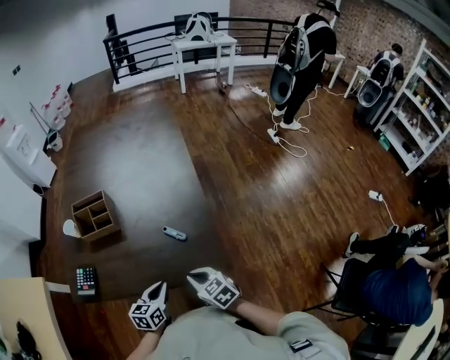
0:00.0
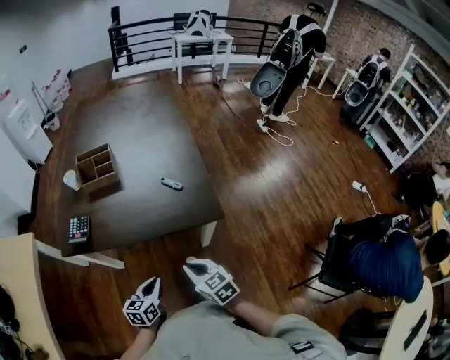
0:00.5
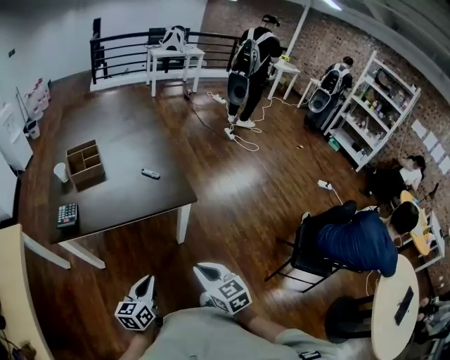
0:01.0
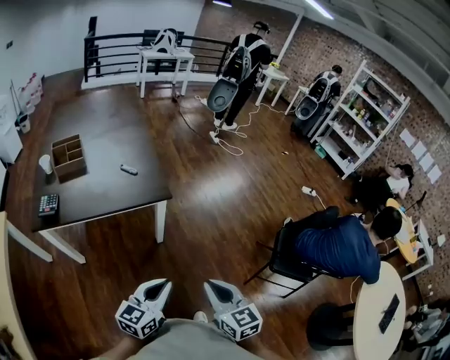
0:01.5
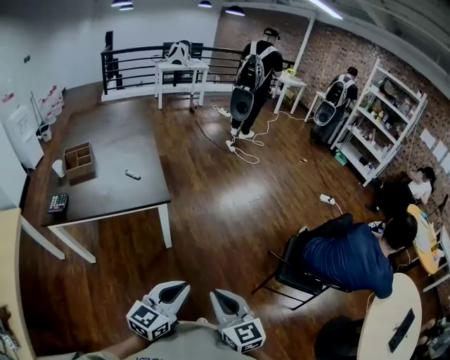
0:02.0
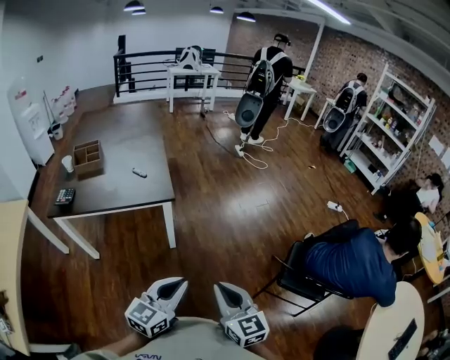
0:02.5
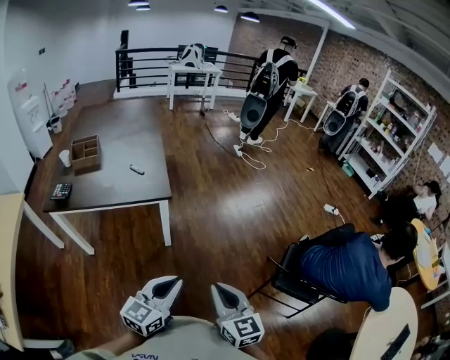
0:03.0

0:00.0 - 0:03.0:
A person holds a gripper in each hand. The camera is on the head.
0:00.0 - 0:01.5: The left gripper ends up about 40 cm from where it was, and turns by roughly 40 degrees. The right gripper changes place by about 40 cm, and swivels roughly 40 degrees.
0:01.5 - 0:03.0: The grippers both shift to the right by about 10 cm.

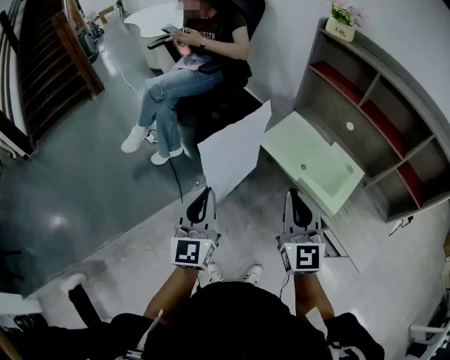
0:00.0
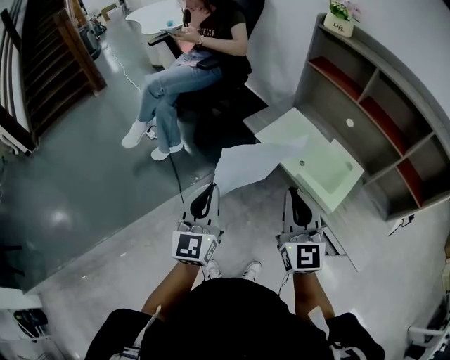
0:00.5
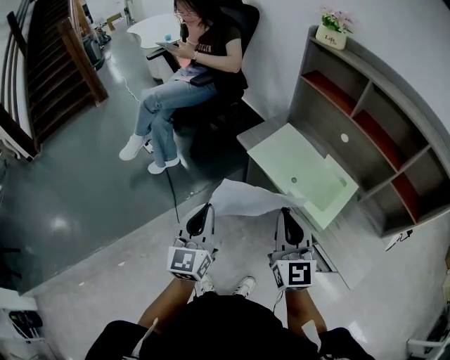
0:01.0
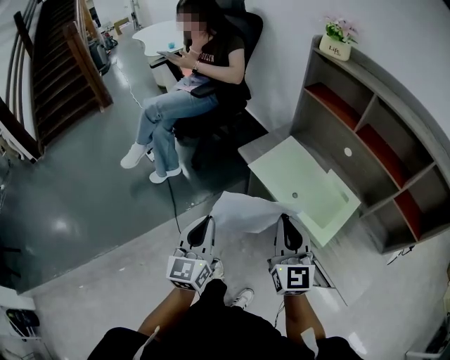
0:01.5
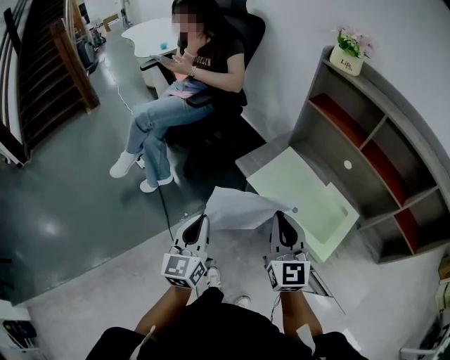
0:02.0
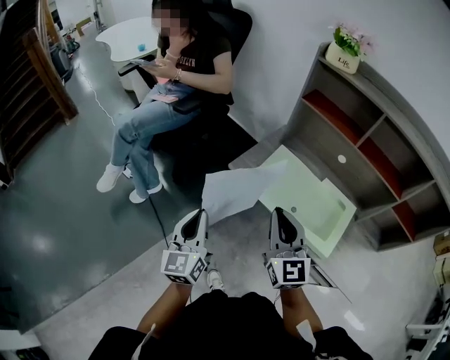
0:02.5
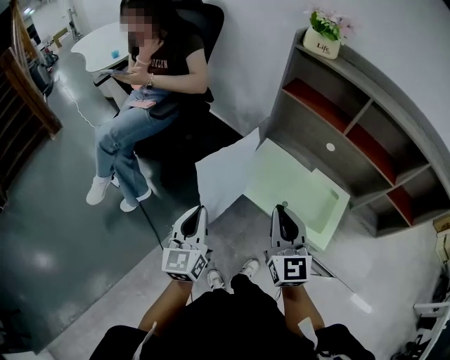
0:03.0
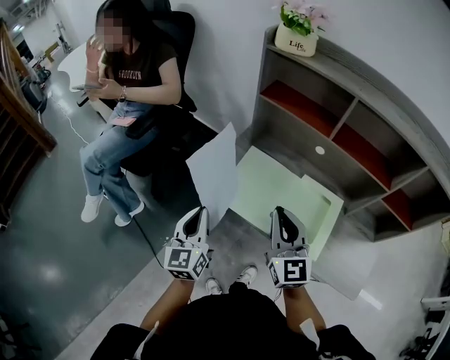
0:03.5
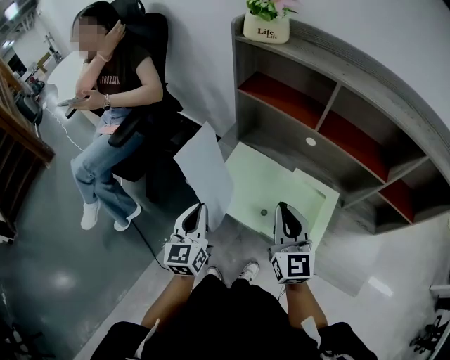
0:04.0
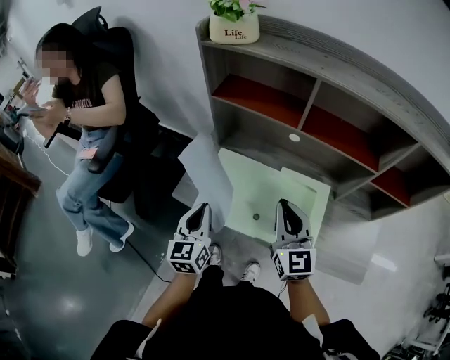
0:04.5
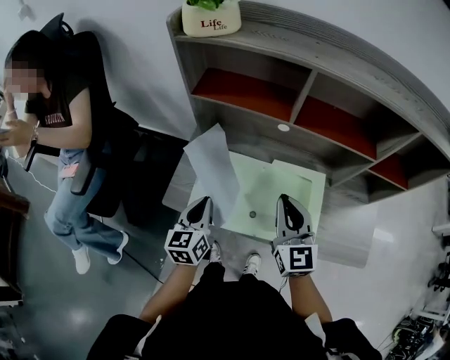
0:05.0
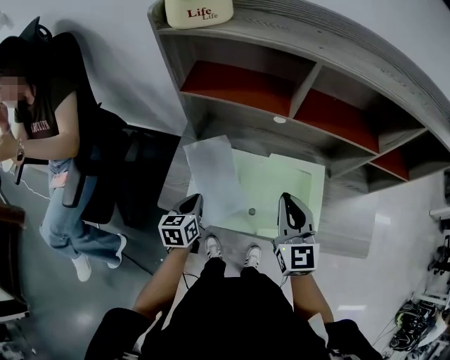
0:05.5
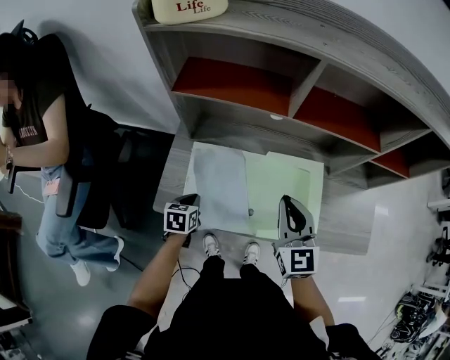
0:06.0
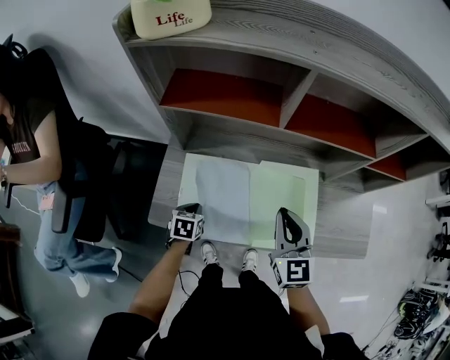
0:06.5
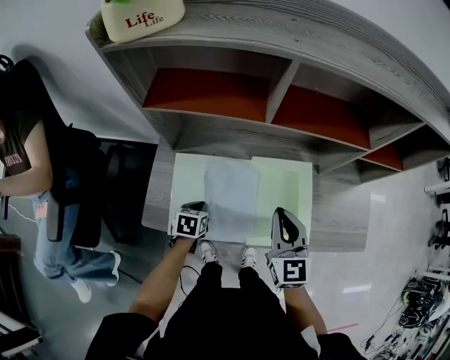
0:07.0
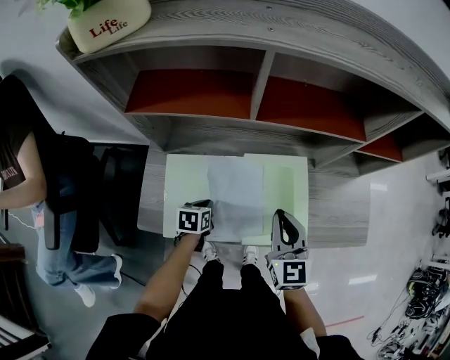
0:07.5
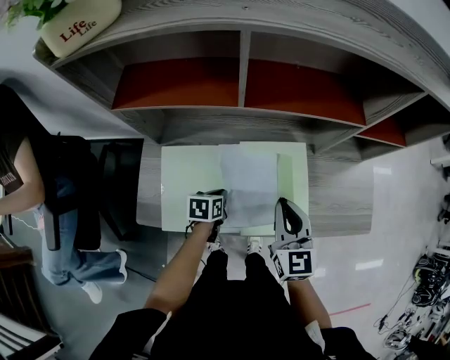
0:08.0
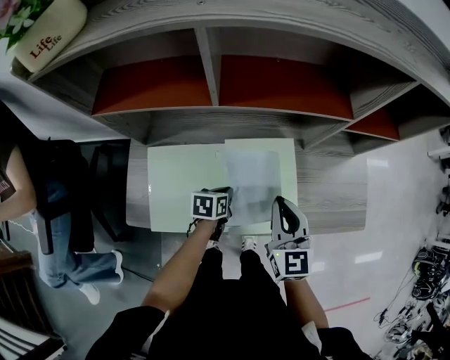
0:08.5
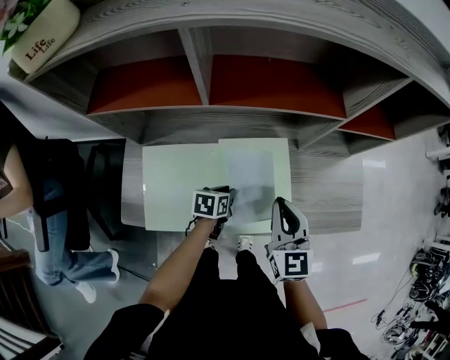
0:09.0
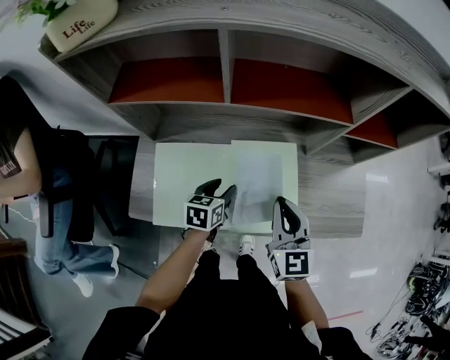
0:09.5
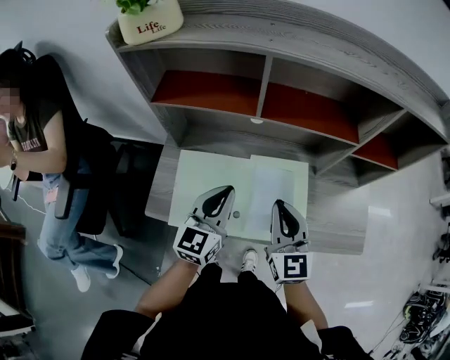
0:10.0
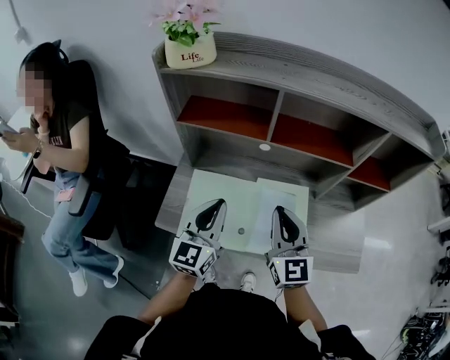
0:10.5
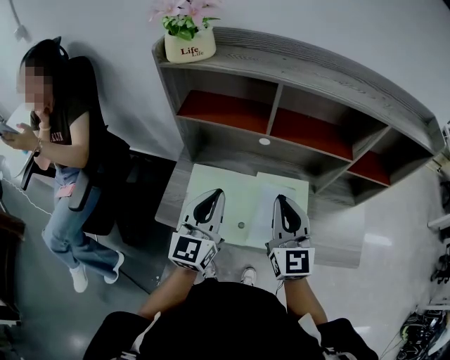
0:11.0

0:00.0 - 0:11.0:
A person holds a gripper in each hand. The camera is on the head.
0:00.0 - 0:02.0: The right gripper moves forward, some 15 cm; the left gripper goes about 15 cm forward and downward.
0:02.0 - 0:03.5: Both grippers move forward and to the right, about 15 cm.
0:03.5 - 0:05.5: The left gripper moves some 25 cm, and tilts its fingers about 30 degrees downward. The right gripper shifts by approximately 15 cm, and turns by about 30 degrees.
0:05.5 - 0:07.5: The left gripper goes roughly 15 cm downward, to the right and forward, and turns by roughly 30 degrees, while the right gripper moves downward and to the right, some 10 cm.
0:07.5 - 0:09.0: The right gripper heads to the right, covering some 5 cm. The left gripper is displaced to the right by roughly 15 cm.
0:09.0 - 0:11.0: The right gripper travels upward by some 15 cm, and turns by about 20 degrees; the left gripper heads upward, covering some 35 cm, angles its fingers upward, by roughly 50 degrees, and opens, then closes once more.

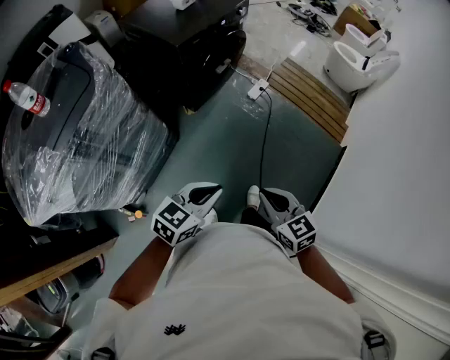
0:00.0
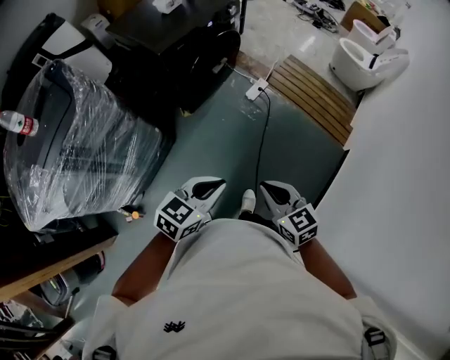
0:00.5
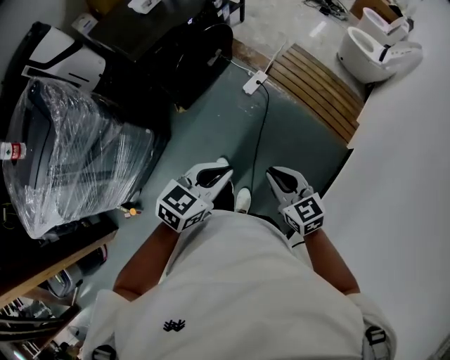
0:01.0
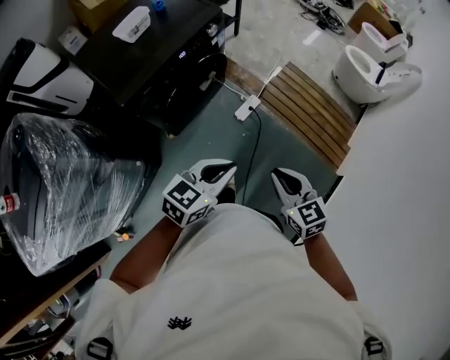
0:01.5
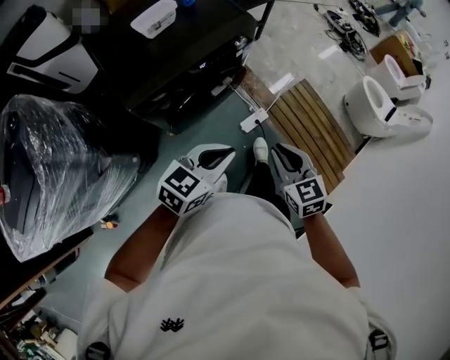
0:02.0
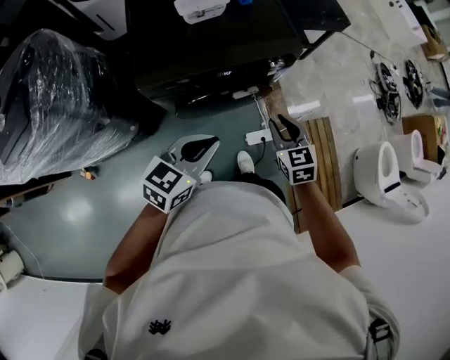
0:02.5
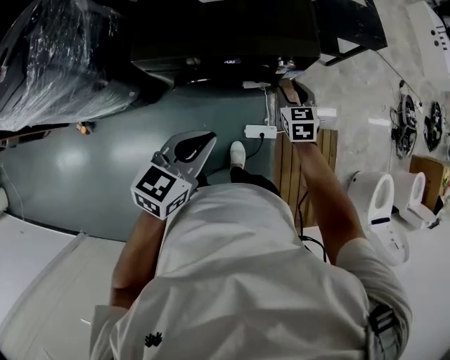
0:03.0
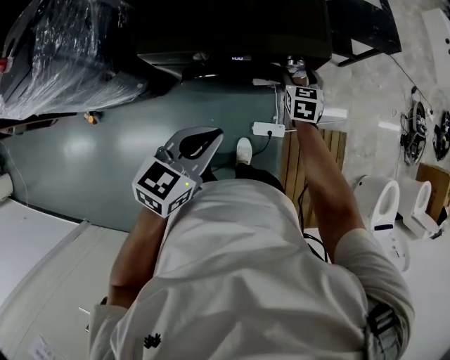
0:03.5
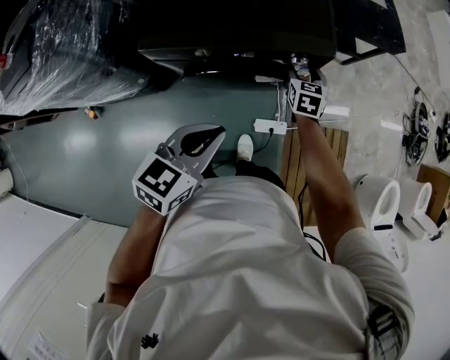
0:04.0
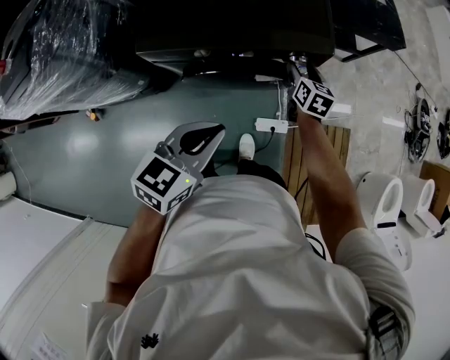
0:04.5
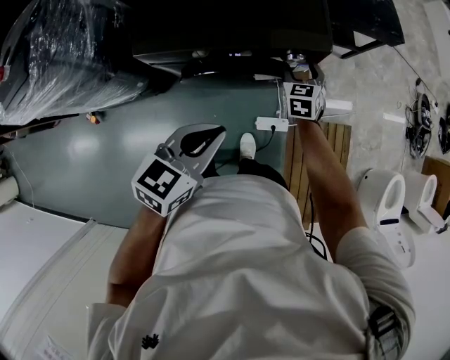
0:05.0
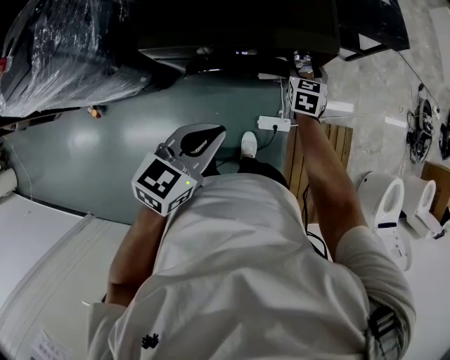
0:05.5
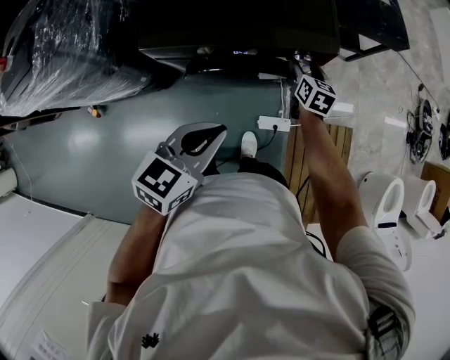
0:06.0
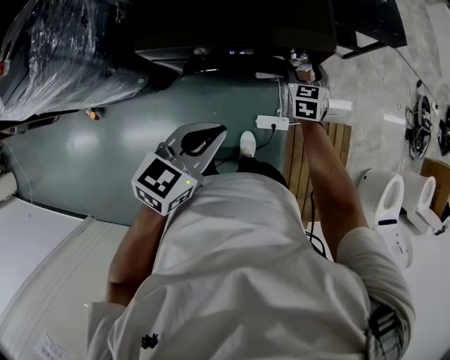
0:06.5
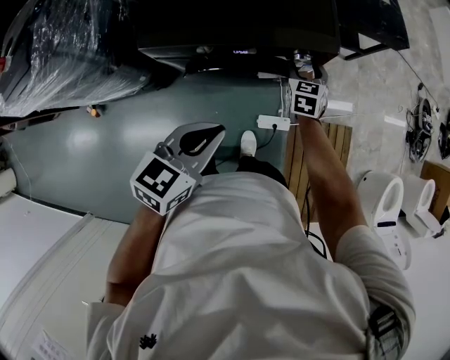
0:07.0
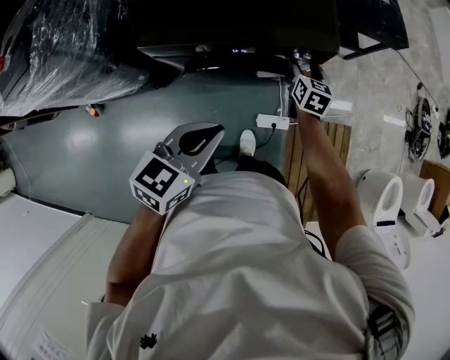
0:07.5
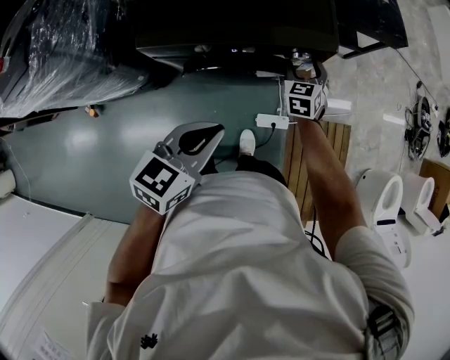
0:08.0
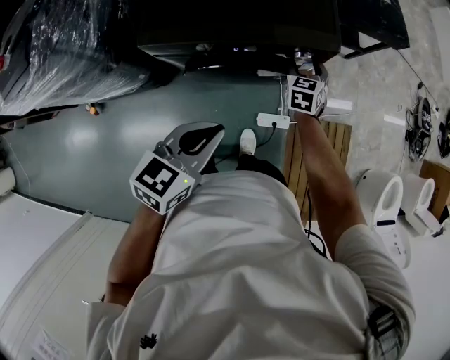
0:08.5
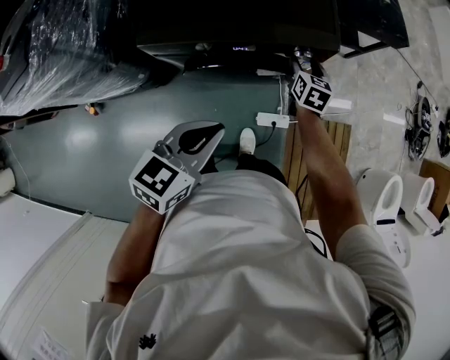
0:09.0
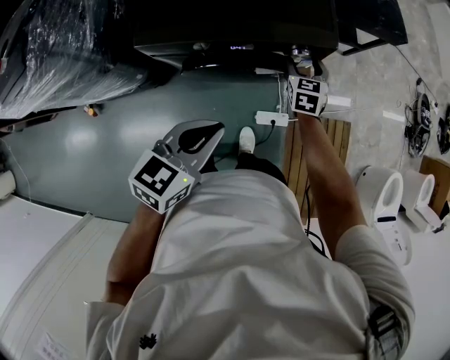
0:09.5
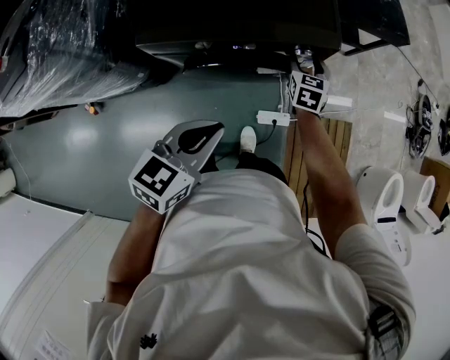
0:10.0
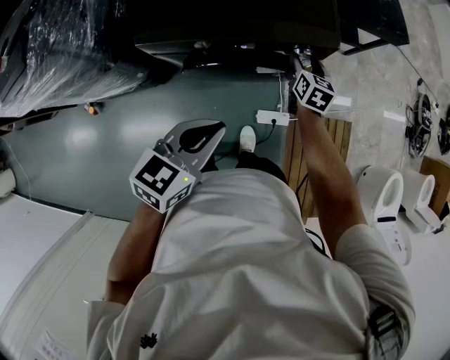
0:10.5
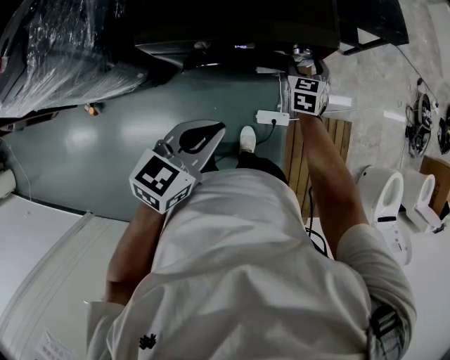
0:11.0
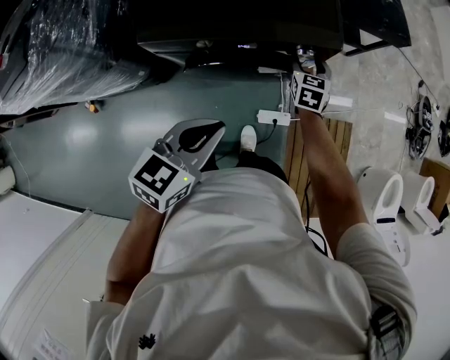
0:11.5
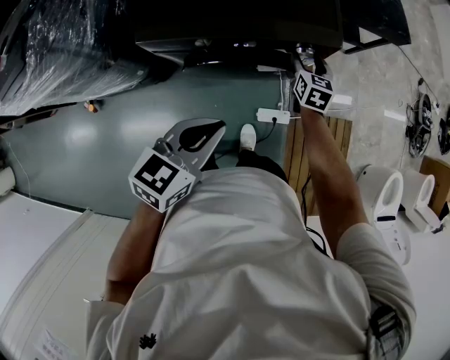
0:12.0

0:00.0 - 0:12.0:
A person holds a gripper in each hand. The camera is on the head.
0:00.0 - 0:02.0: The two grippers travel together, forward, some 60 cm.
0:02.0 - 0:04.0: The right gripper shifts by approximately 50 cm, and opens up. Meanwhile the left gripper shifts by approximately 15 cm, and turns by some 50 degrees.
0:06.0 - 0:08.0: The right gripper swivels roughly 30 degrees.
0:10.0 - 0:12.0: There are only small adjustments of the grippers.

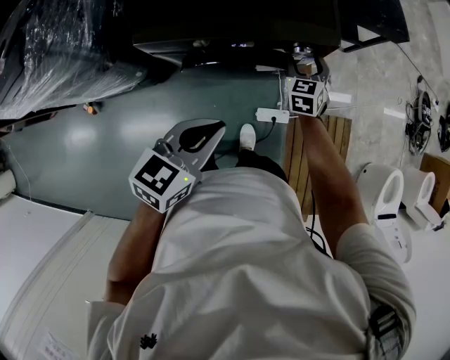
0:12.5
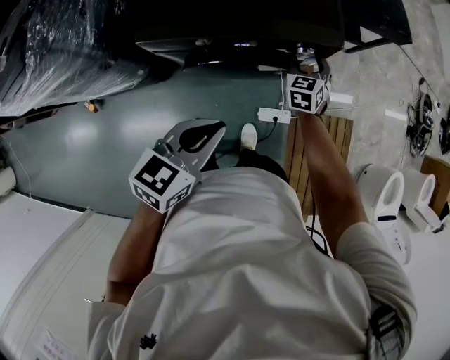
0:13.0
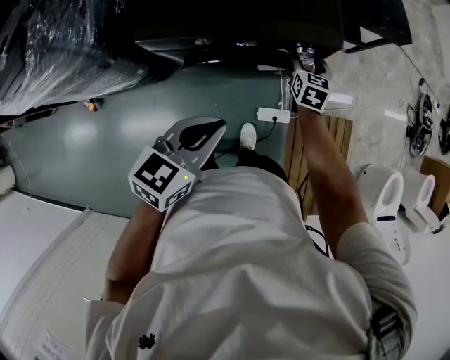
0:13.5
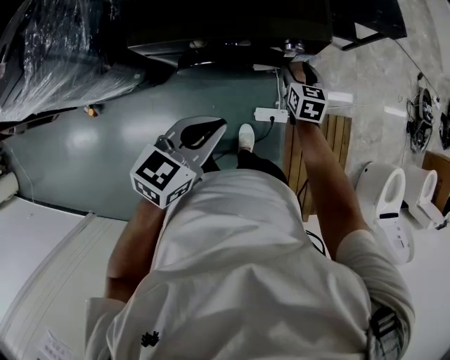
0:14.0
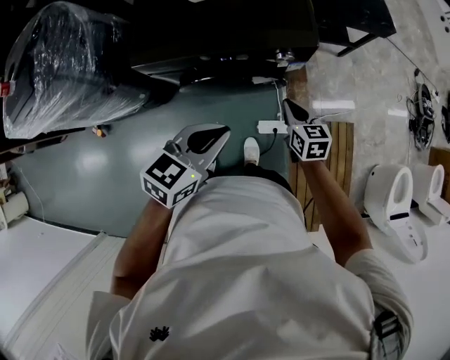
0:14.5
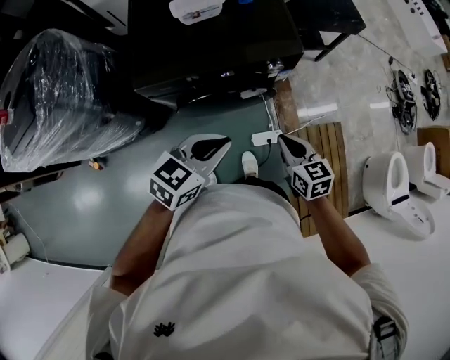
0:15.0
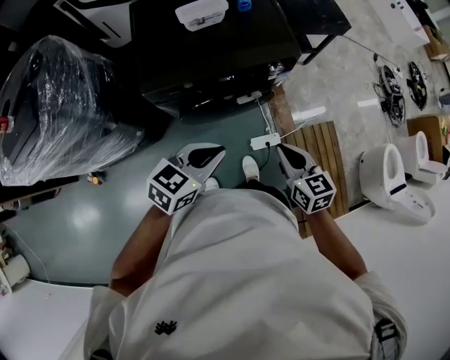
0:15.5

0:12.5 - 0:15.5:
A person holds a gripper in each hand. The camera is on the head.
0:12.5 - 0:14.0: The right gripper changes its angle by about 20 degrees.
0:14.0 - 0:15.5: The right gripper moves backward and upward, about 30 cm, and closes. Meanwhile the left gripper heads to the left and backward, covering roughly 10 cm.
